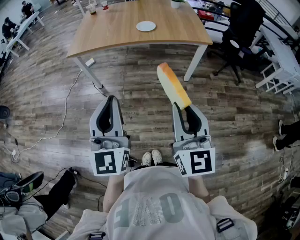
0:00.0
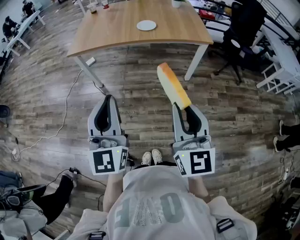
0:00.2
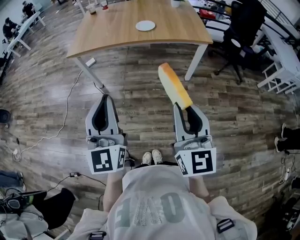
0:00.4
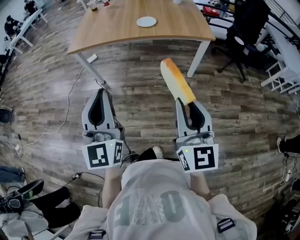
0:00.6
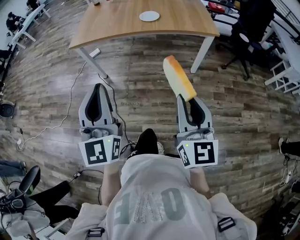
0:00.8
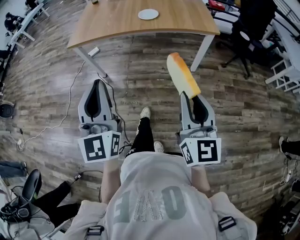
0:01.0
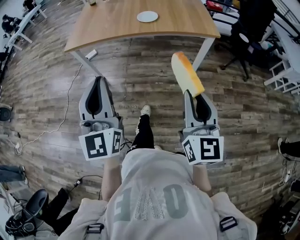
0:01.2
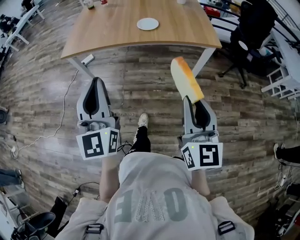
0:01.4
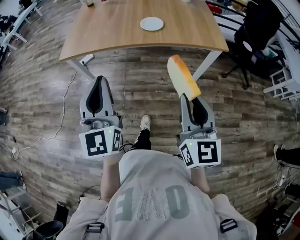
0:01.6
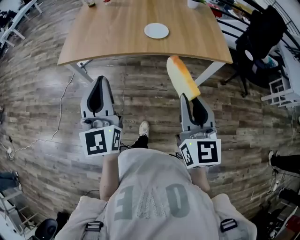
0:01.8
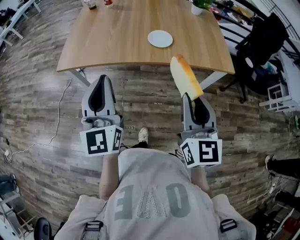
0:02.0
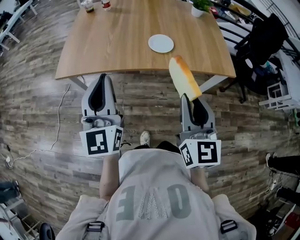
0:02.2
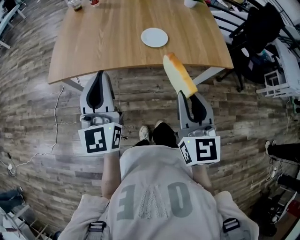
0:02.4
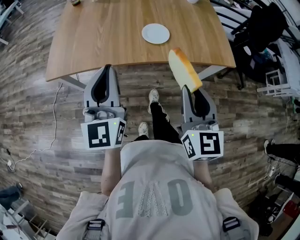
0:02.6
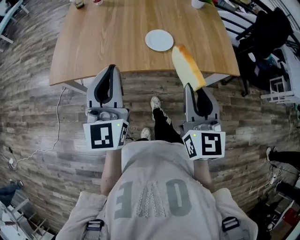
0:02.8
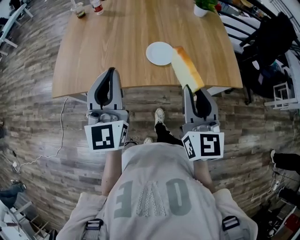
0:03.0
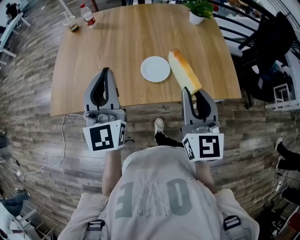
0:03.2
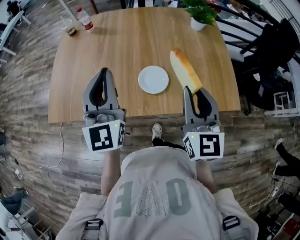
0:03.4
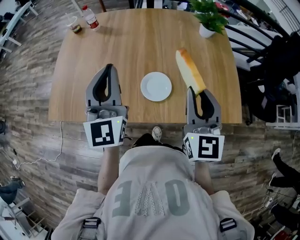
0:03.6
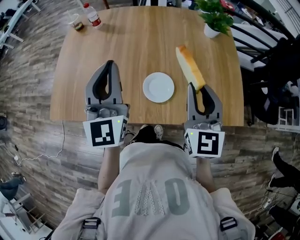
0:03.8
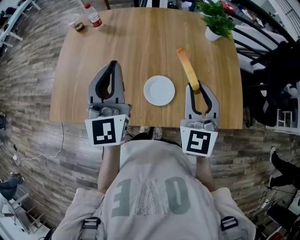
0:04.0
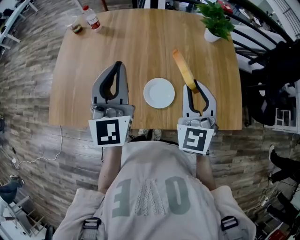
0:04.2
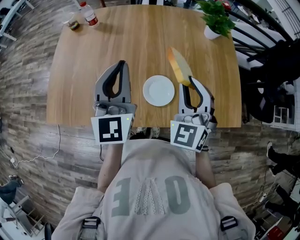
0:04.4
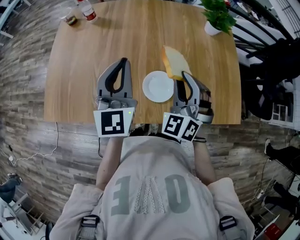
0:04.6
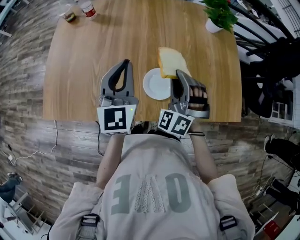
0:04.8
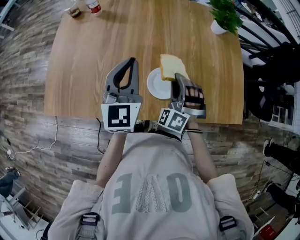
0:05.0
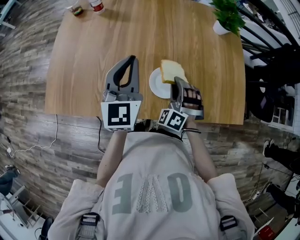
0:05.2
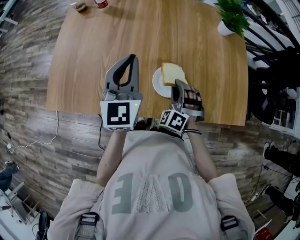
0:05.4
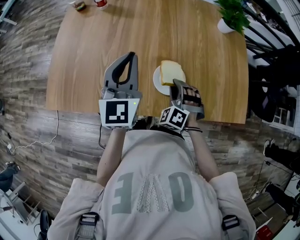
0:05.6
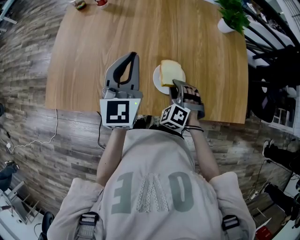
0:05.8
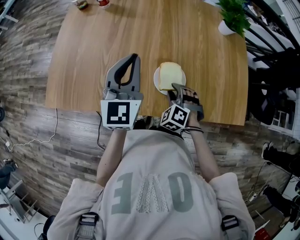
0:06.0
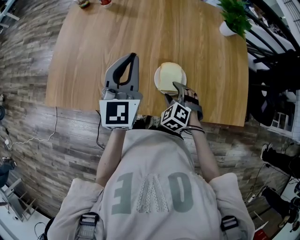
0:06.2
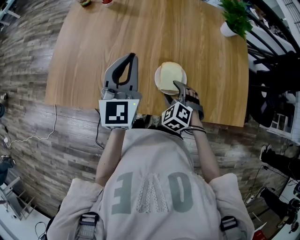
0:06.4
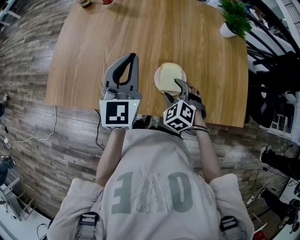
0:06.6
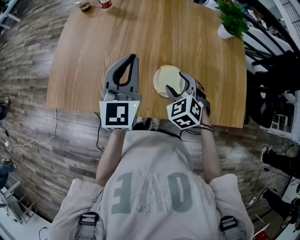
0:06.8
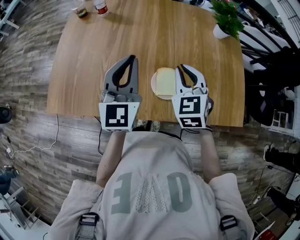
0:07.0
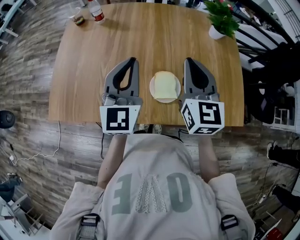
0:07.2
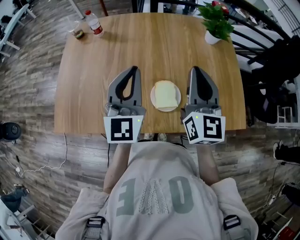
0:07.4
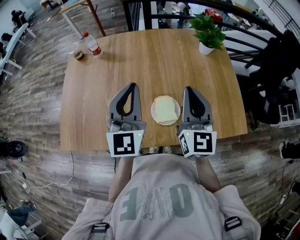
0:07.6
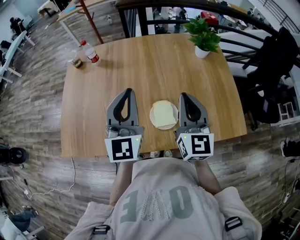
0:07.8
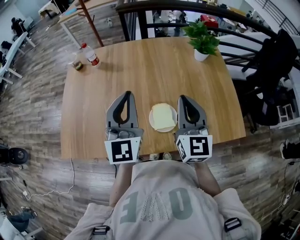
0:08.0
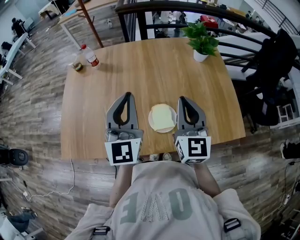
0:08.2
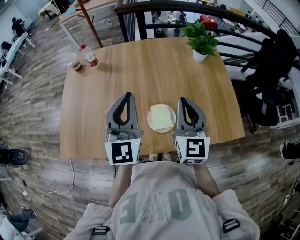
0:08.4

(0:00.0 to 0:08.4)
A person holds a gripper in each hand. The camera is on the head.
0:00.0 - 0:01.4: The right gripper goes about 15 cm forward and to the right; the left gripper moves forward, roughly 15 cm.
0:01.4 - 0:02.8: The two grippers go approximately 30 cm forward.
0:02.8 - 0:04.2: The grippers both shift forward by roughly 30 cm. The right gripper turns by about 30 degrees.
0:04.2 - 0:05.6: The left gripper shifts about 10 cm downward, while the right gripper is displaced downward by about 20 cm, and rotates approximately 50 degrees.
0:05.6 - 0:07.0: The right gripper travels upward by approximately 15 cm, rotates some 40 degrees, and opens and closes again.
0:07.0 - 0:08.4: The left gripper heads upward, covering approximately 5 cm, while the right gripper shifts roughly 10 cm upward and to the right, and turns by approximately 40 degrees.

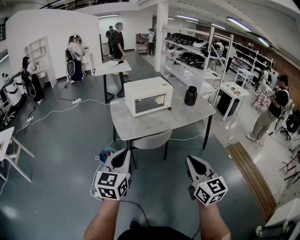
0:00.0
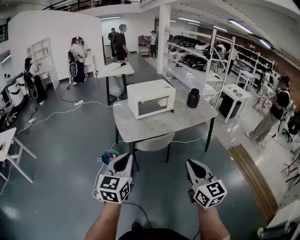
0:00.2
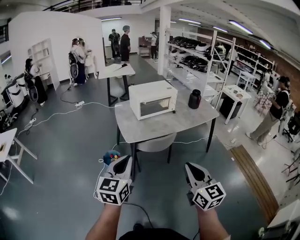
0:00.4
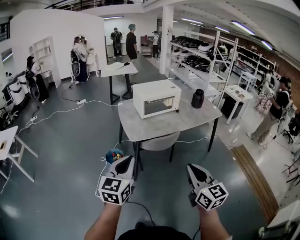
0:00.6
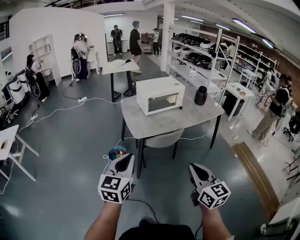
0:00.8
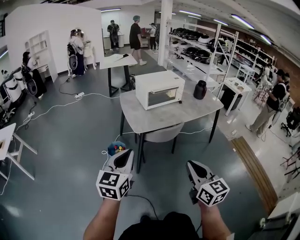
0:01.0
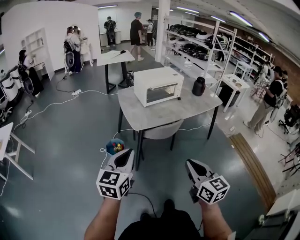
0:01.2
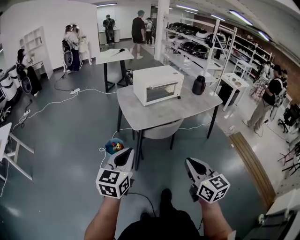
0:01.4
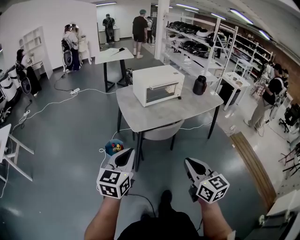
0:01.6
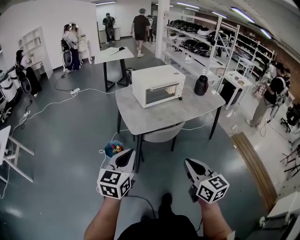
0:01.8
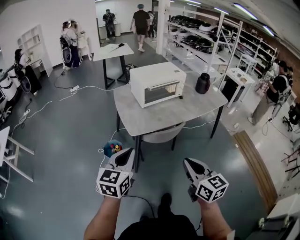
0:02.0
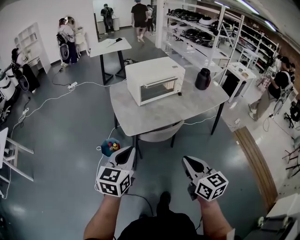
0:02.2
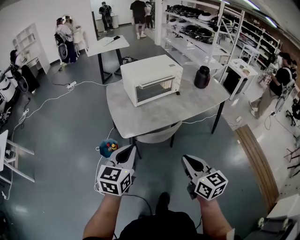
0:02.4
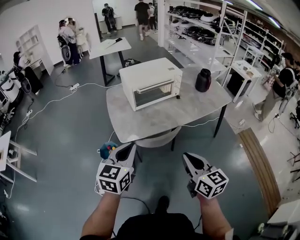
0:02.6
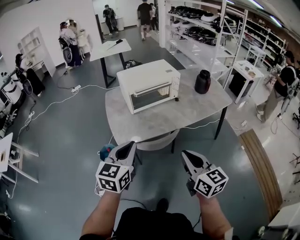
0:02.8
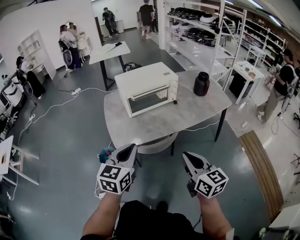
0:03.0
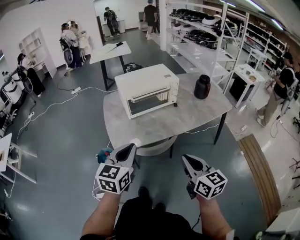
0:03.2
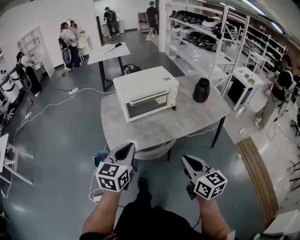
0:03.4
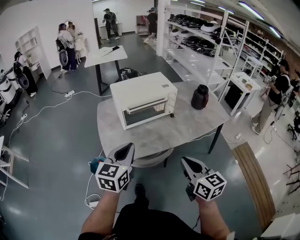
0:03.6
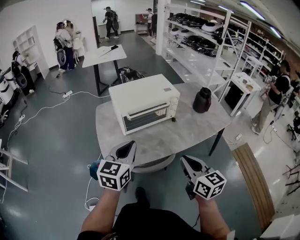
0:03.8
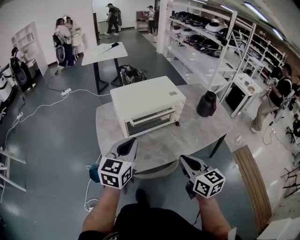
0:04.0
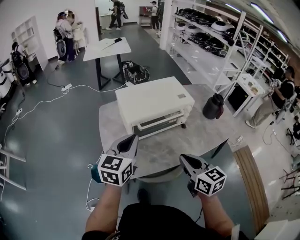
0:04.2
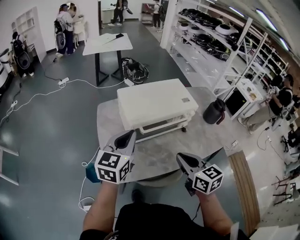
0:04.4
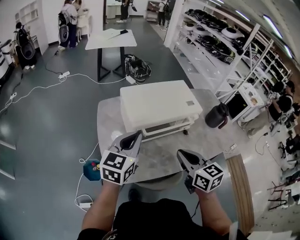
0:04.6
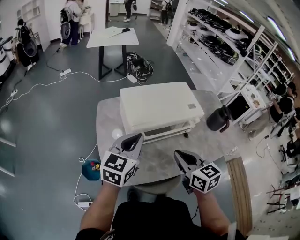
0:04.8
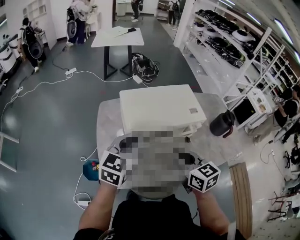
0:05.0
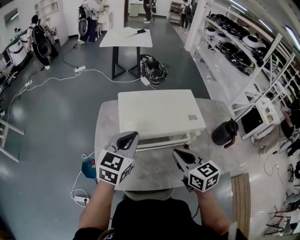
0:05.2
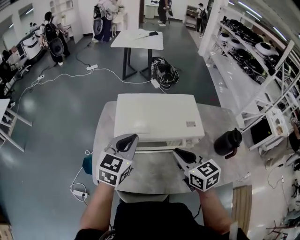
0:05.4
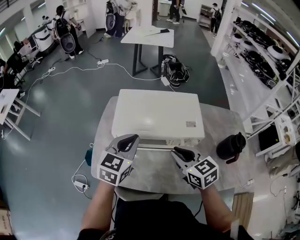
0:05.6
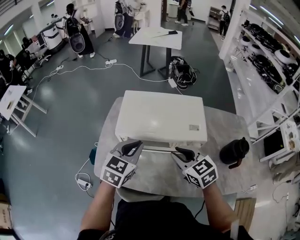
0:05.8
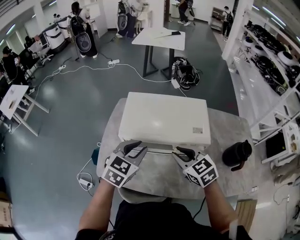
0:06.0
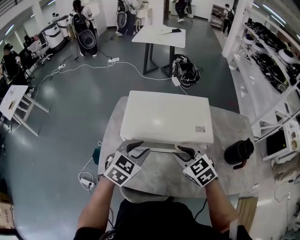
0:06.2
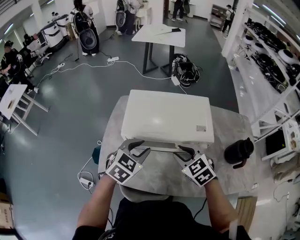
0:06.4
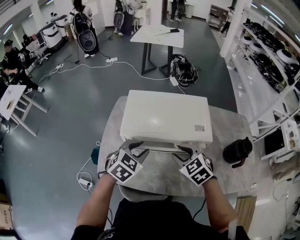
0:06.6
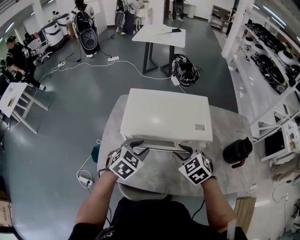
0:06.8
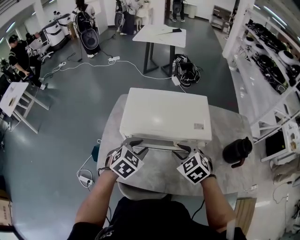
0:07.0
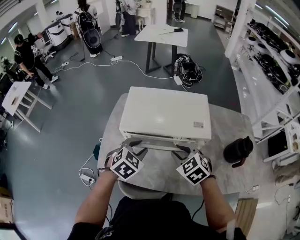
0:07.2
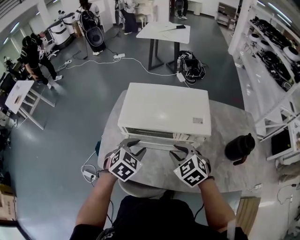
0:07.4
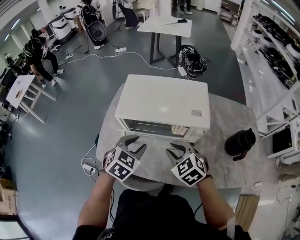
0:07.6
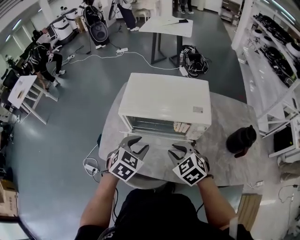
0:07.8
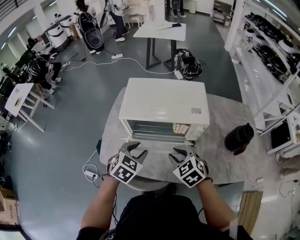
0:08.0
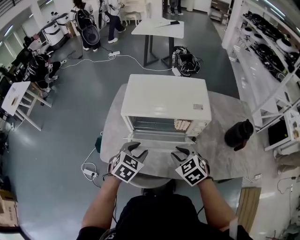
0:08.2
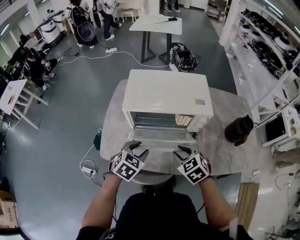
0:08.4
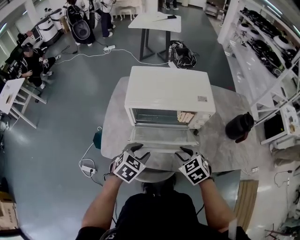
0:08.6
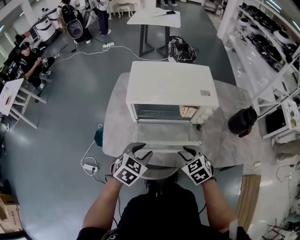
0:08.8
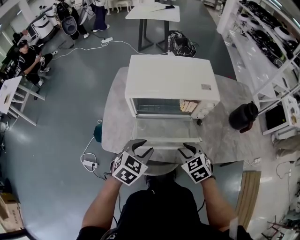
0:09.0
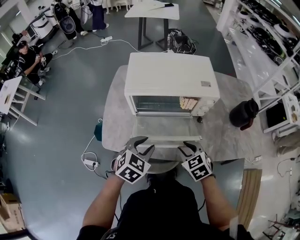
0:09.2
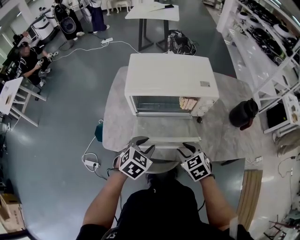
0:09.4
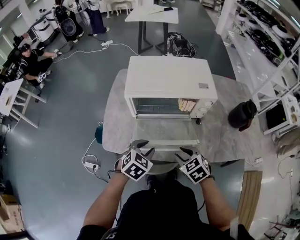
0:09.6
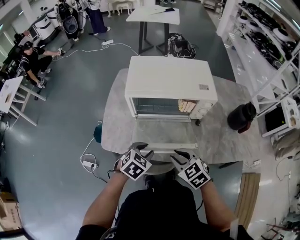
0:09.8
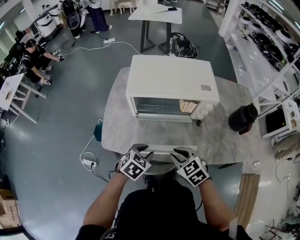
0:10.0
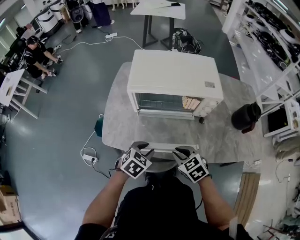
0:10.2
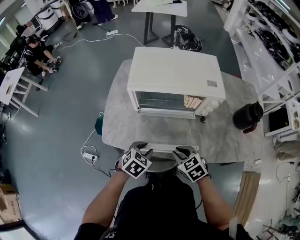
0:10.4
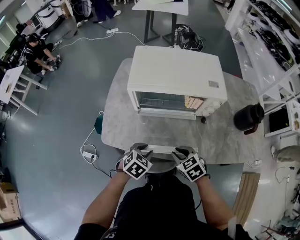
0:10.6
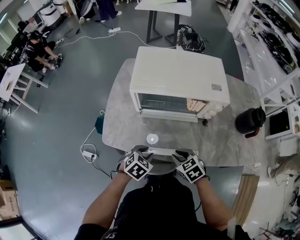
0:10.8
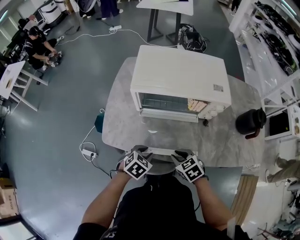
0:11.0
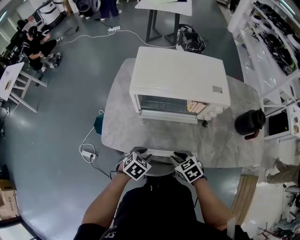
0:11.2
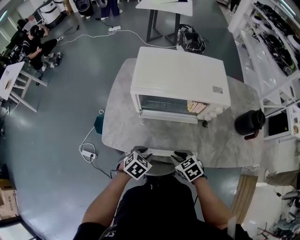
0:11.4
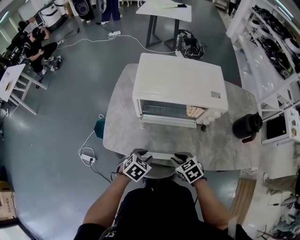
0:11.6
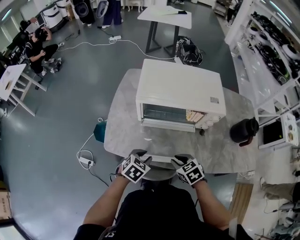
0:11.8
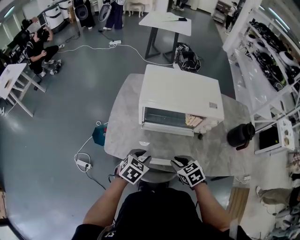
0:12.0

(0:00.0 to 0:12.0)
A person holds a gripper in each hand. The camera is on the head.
0:00.0 - 0:01.6: The grippers both shift to the left and downward by some 15 cm.
0:01.6 - 0:03.0: The two grippers go roughly 30 cm forward and to the right.
0:03.0 - 0:04.4: The two grippers go about 30 cm forward.
0:04.4 - 0:06.0: The left gripper changes place by about 15 cm, turns by some 30 degrees, and opens up, while the right gripper ends up some 20 cm from where it was, swivels approximately 40 degrees, and opens its fingers.
0:06.0 - 0:07.6: The grippers both shift downward by about 5 cm.
0:07.6 - 0:09.0: The left gripper shifts about 10 cm backward; the right gripper shifts approximately 10 cm backward and downward.
0:09.0 - 0:10.4: The left gripper shifts some 10 cm downward. The right gripper changes place by some 5 cm.
0:10.4 - 0:12.0: The left gripper ends up approximately 5 cm from where it was.

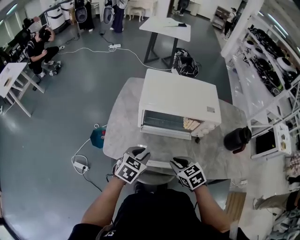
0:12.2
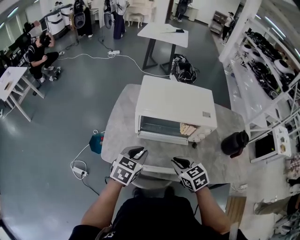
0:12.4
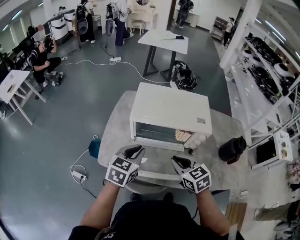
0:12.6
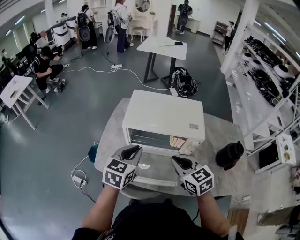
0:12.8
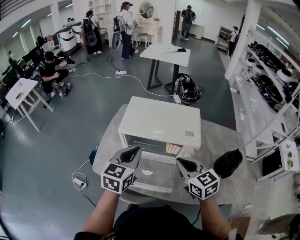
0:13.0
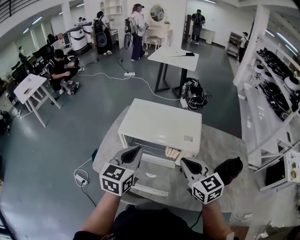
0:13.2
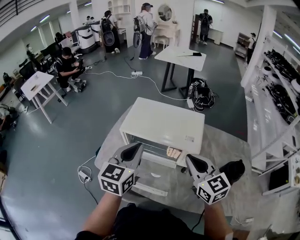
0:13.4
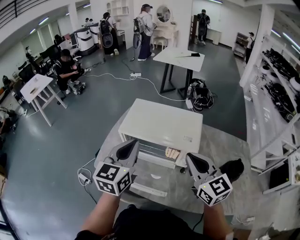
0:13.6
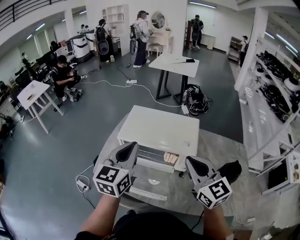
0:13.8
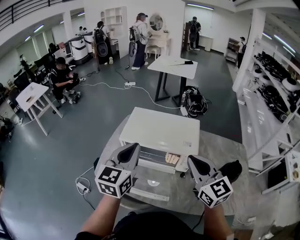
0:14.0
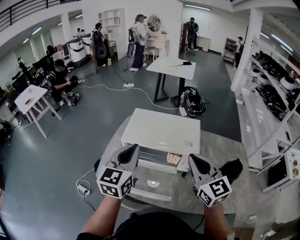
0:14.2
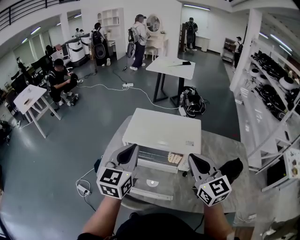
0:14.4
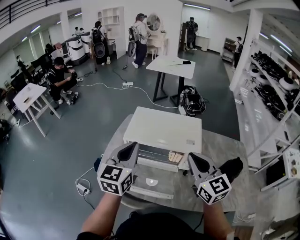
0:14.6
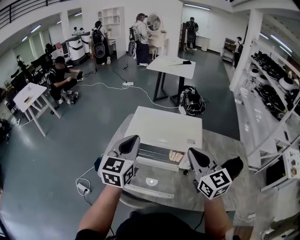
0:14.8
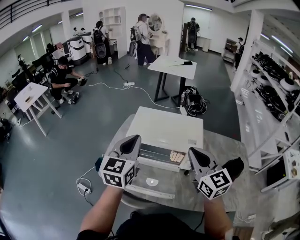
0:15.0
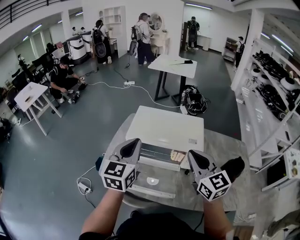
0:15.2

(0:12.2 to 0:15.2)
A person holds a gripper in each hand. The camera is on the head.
0:12.2 - 0:13.8: The left gripper heads upward, covering some 25 cm, tilts its fingers approximately 30 degrees upward, and closes its fingers; the right gripper shifts approximately 30 cm upward and to the right, and tips its fingers upward by about 50 degrees.
0:13.8 - 0:15.2: The grippers make only small movements.
